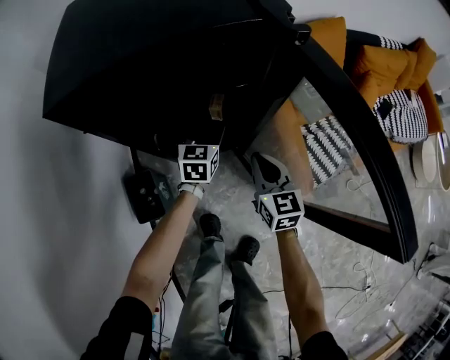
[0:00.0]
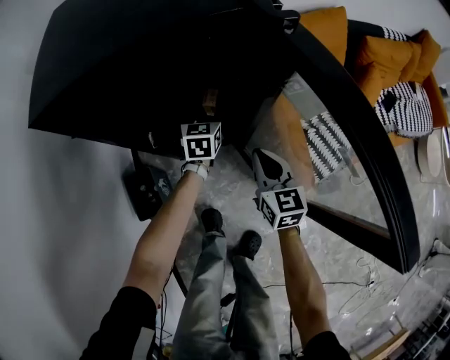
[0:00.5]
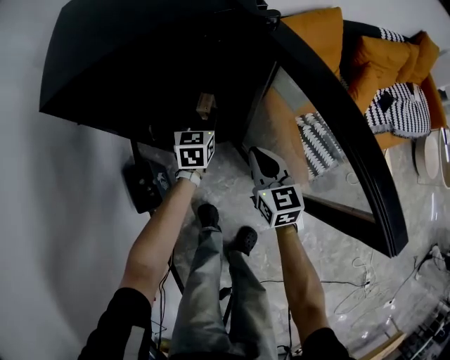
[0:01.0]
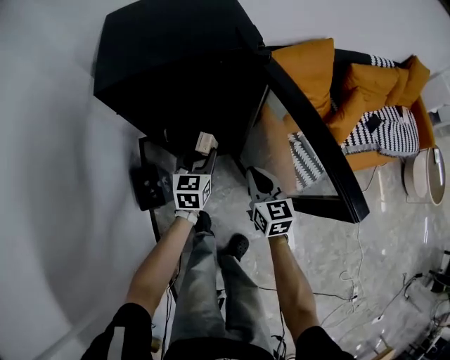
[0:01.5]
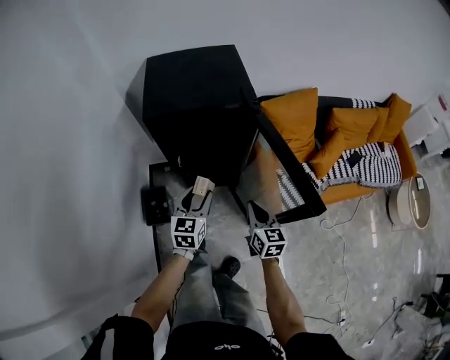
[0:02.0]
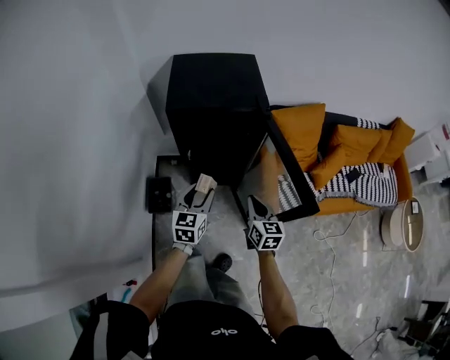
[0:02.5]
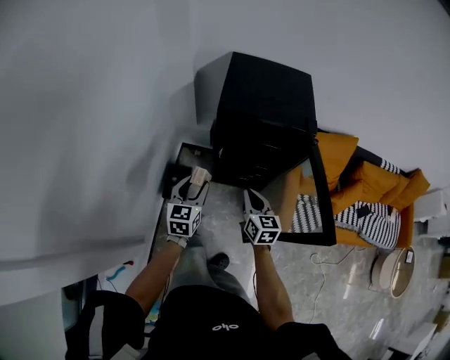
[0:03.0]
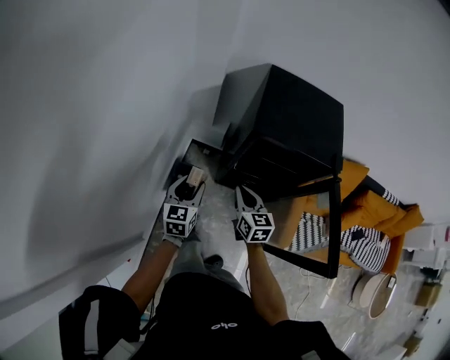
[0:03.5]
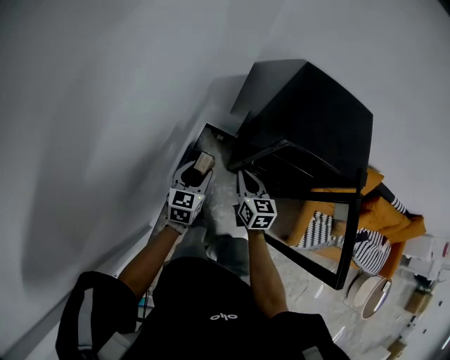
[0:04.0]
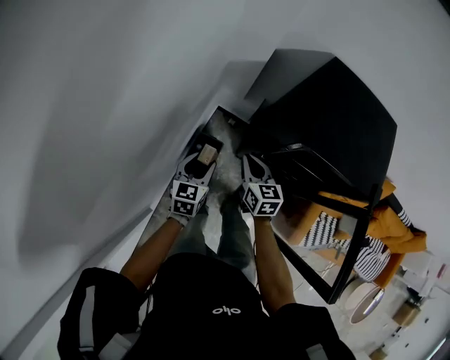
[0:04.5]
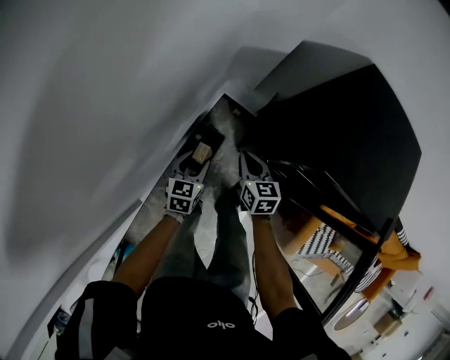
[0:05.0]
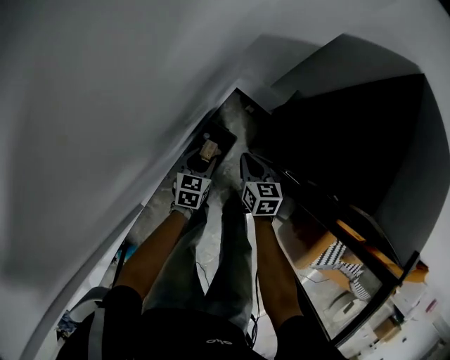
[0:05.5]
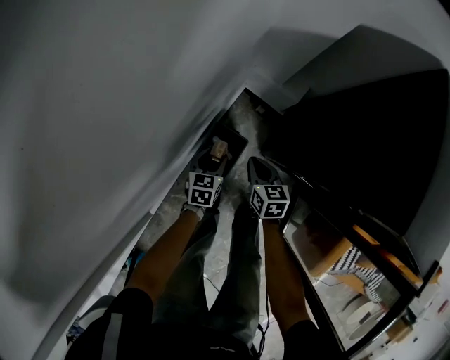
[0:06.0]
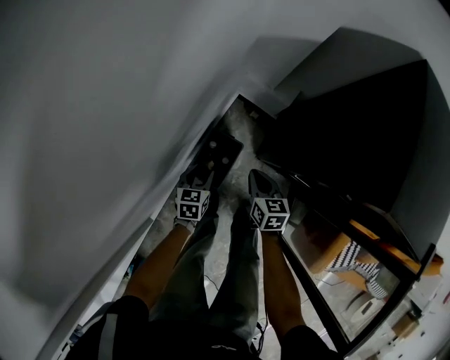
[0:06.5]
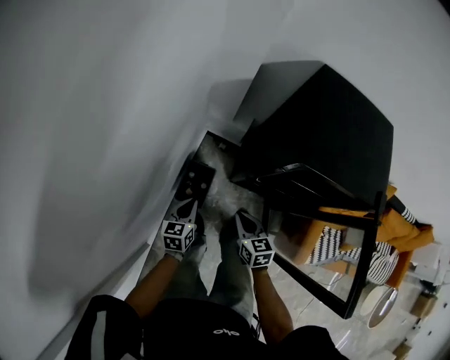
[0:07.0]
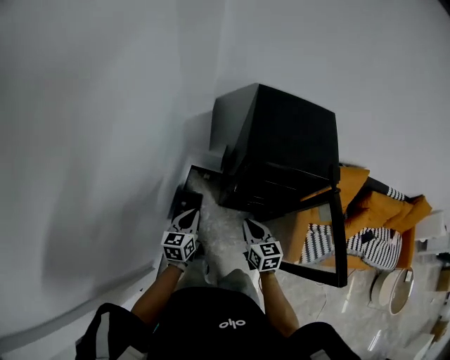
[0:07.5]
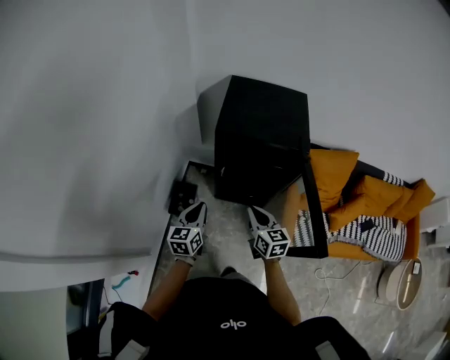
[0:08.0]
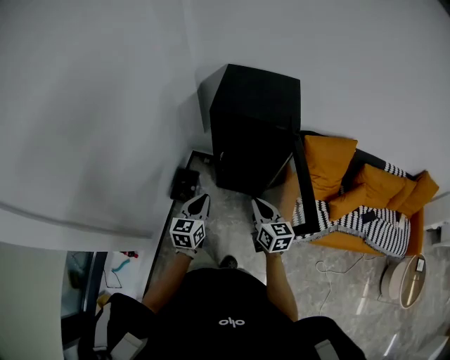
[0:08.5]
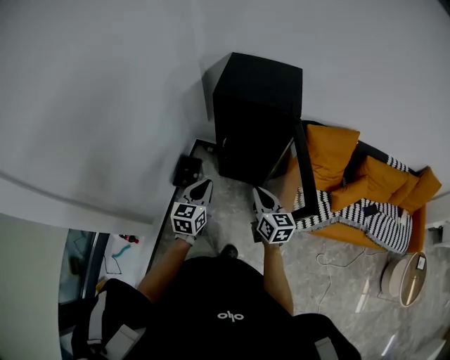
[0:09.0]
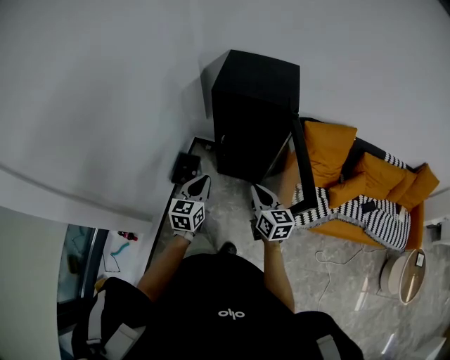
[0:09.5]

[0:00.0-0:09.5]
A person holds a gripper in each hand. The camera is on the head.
0:00.0 to 0:02.0: The left gripper heads backward and upward, covering about 35 cm; the right gripper travels upward and backward by some 25 cm.
0:02.0 to 0:04.0: The left gripper moves about 35 cm, and rotates some 20 degrees; the right gripper changes place by about 40 cm, and swivels some 30 degrees.
0:04.0 to 0:05.5: Both grippers travel together downward, approximately 30 cm. The right gripper swivels about 20 degrees; the left gripper rotates roughly 20 degrees.
0:05.5 to 0:07.5: The right gripper is displaced upward, backward and to the right by about 40 cm, and swivels approximately 20 degrees, while the left gripper heads upward and backward, covering some 35 cm, rotates roughly 20 degrees, and closes.
0:07.5 to 0:09.5: Both grippers move backward, to the right and upward, approximately 30 cm.

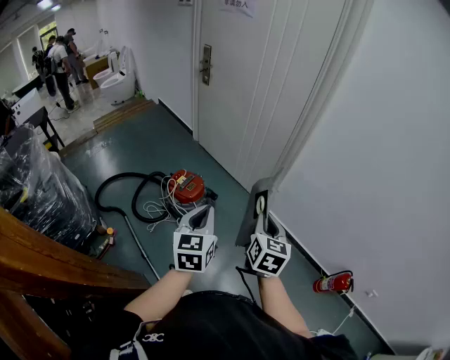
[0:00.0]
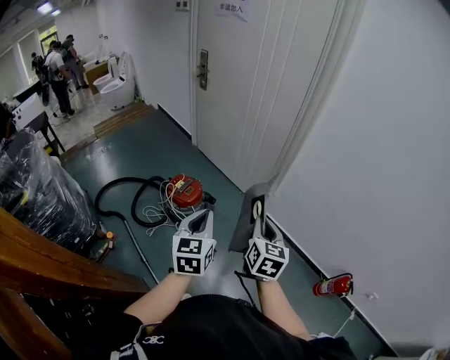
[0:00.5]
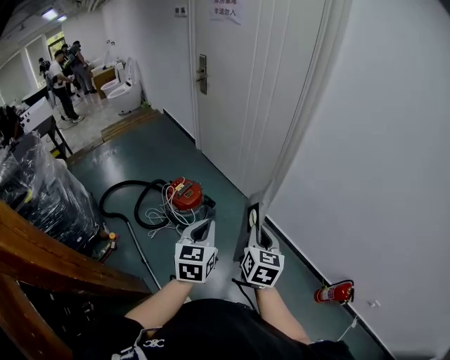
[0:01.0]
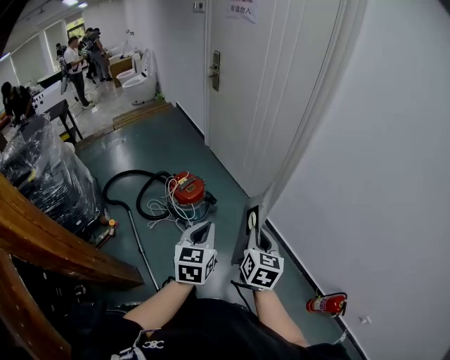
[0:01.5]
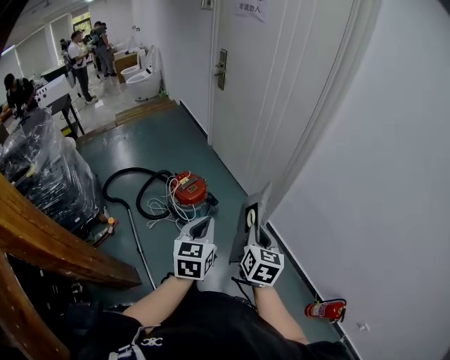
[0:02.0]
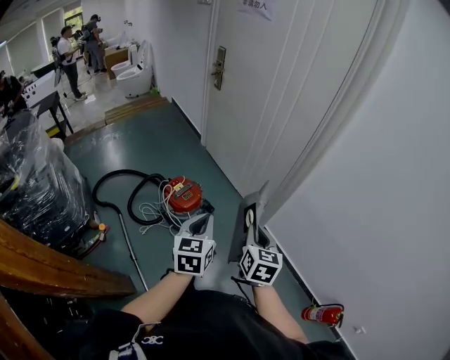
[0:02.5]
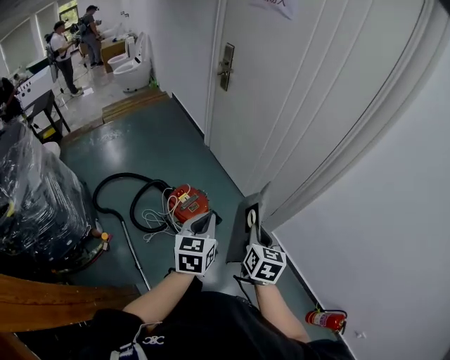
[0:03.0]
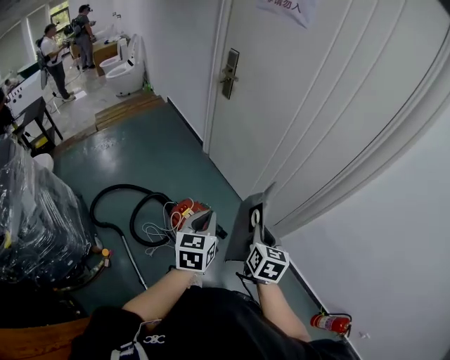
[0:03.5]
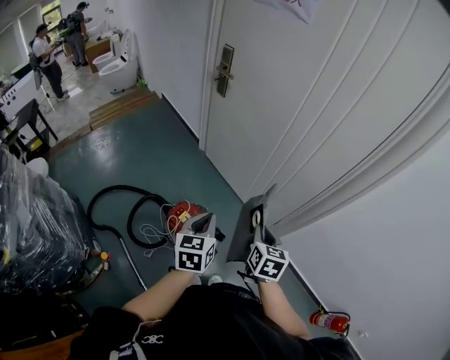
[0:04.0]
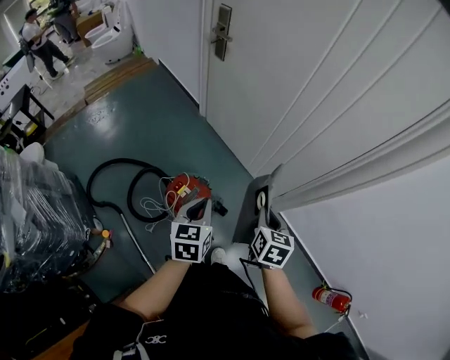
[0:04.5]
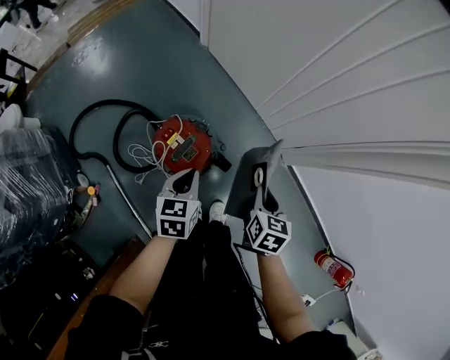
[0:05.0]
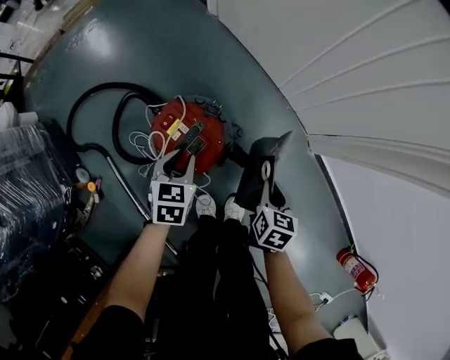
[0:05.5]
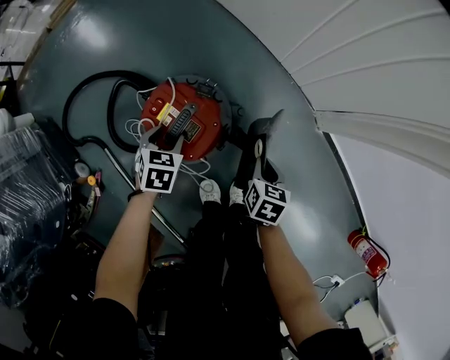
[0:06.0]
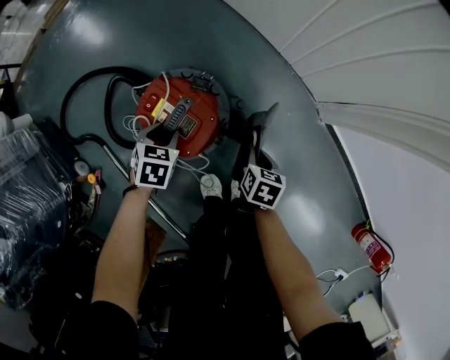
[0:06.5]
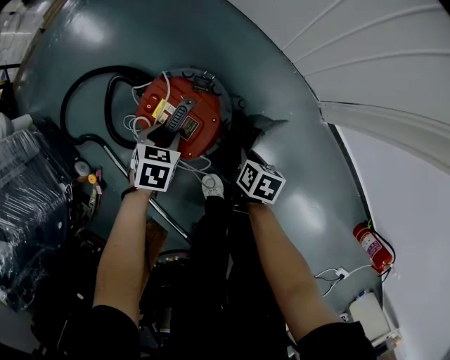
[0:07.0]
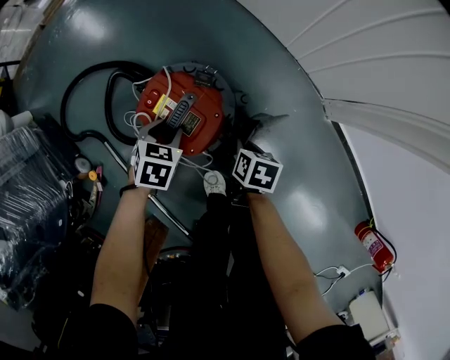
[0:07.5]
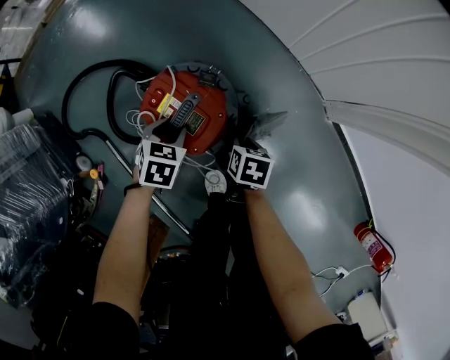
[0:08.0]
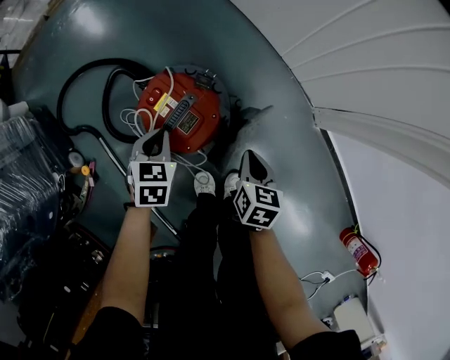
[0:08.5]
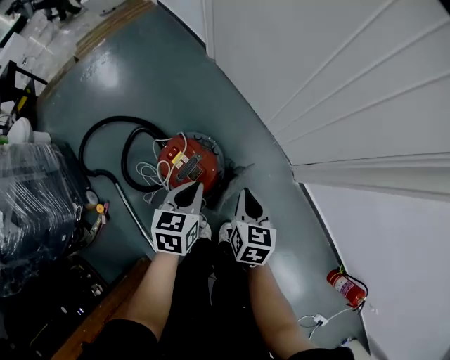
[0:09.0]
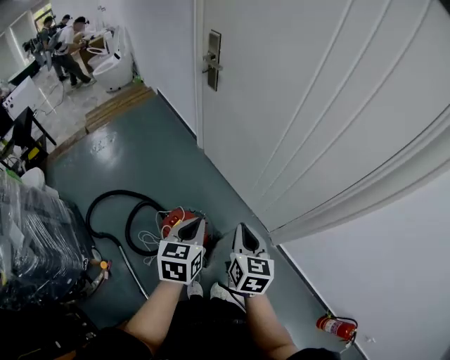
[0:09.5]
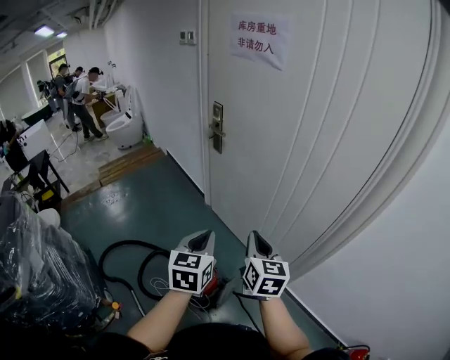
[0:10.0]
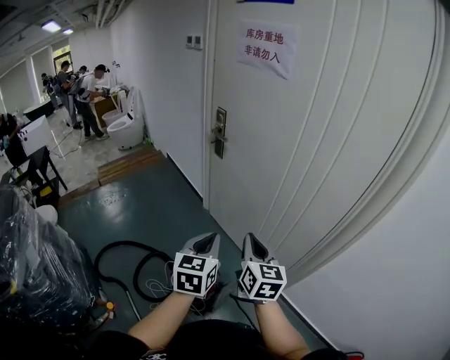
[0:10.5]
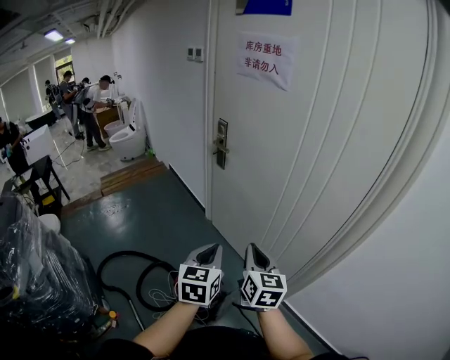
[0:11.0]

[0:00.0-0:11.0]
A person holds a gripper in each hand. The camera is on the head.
0:00.0 to 0:02.0: The left gripper heads to the right, covering about 10 cm. The right gripper travels to the right by about 5 cm.
0:02.0 to 0:03.5: The grippers both shift forward and to the left by some 30 cm.
0:03.5 to 0:05.5: Both grippers move downward, some 40 cm. The right gripper turns by approximately 20 degrees, while the left gripper changes its angle by some 30 degrees.
0:05.5 to 0:07.5: The left gripper goes roughly 10 cm downward, and swivels some 20 degrees, while the right gripper goes roughly 15 cm downward and to the left, and rotates about 20 degrees.
0:07.5 to 0:09.0: The two grippers go approximately 30 cm upward. The left gripper swivels roughly 30 degrees, and closes its fingers. The right gripper rotates some 30 degrees.
0:09.0 to 0:11.0: The two grippers go roughly 40 cm upward. The left gripper swivels about 30 degrees. The right gripper rotates roughly 30 degrees.

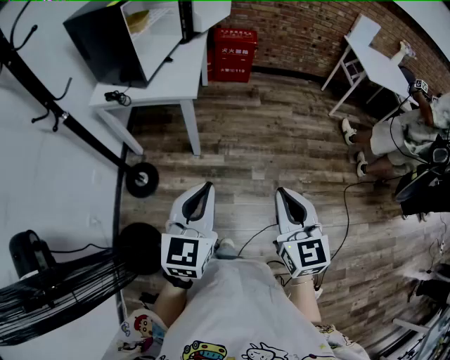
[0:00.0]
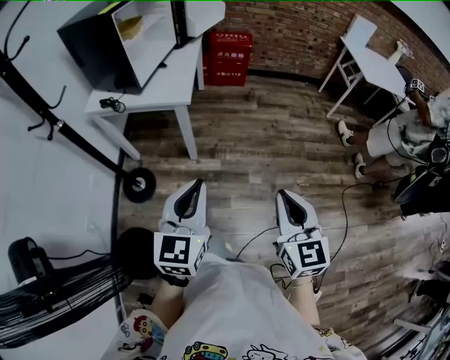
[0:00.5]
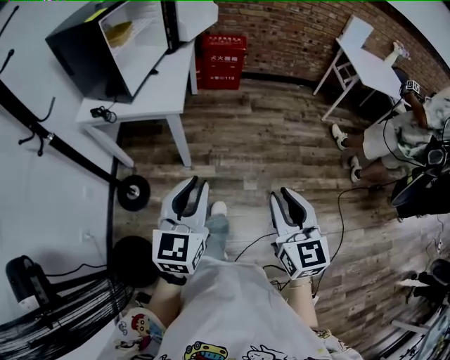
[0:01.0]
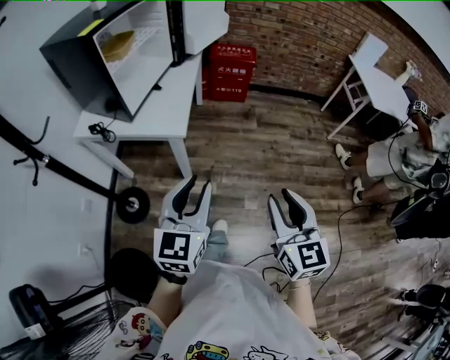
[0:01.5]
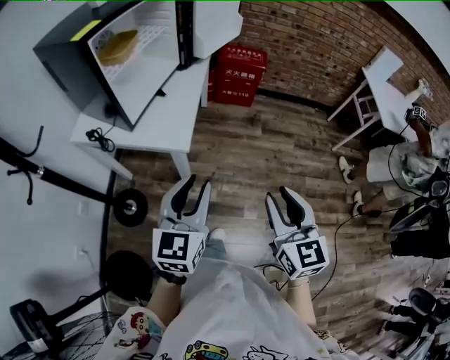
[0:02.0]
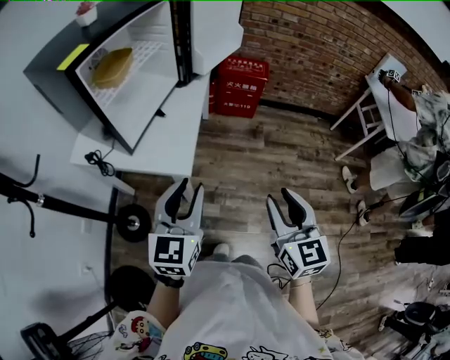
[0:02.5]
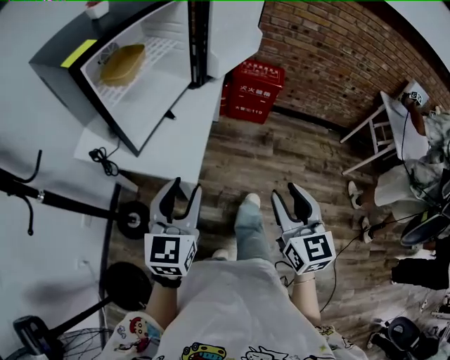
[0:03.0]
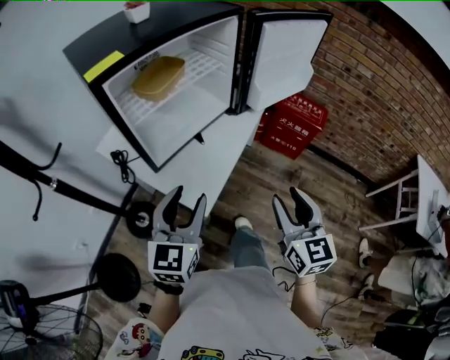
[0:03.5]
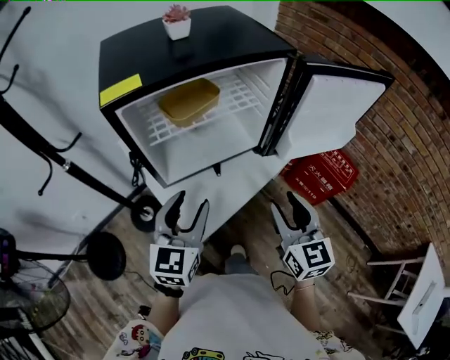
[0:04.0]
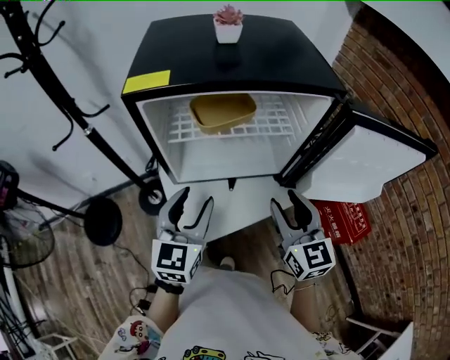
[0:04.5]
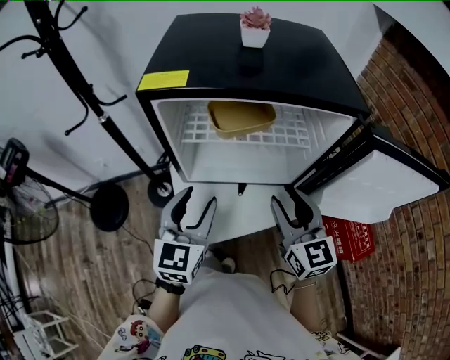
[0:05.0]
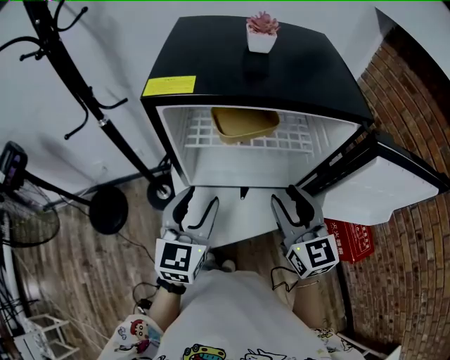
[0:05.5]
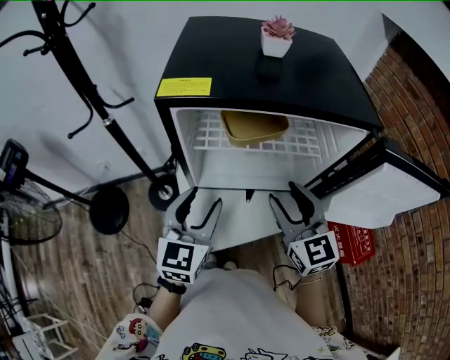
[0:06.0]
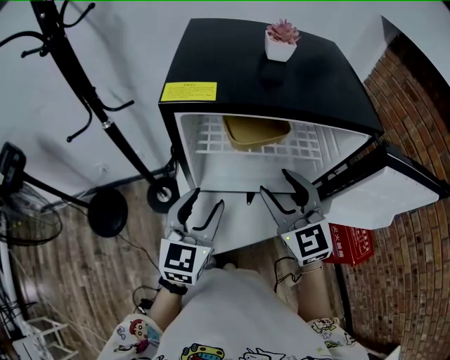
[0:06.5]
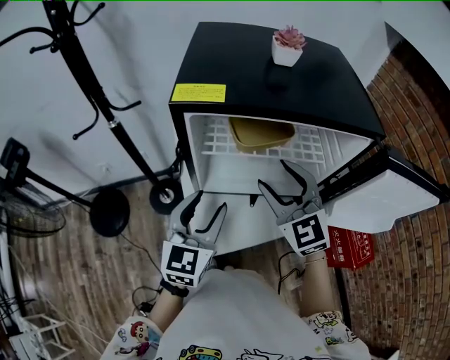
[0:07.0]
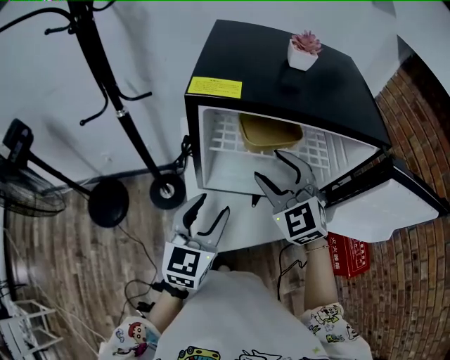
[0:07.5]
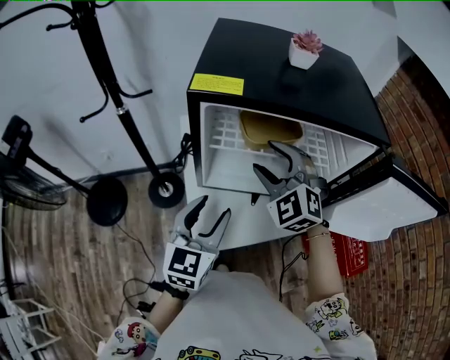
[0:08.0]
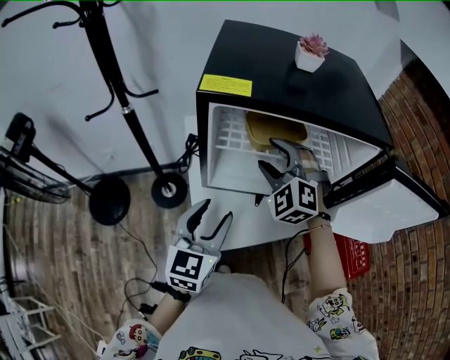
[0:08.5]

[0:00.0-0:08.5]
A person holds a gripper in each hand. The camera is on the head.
0:00.0 to 0:02.0: The two grippers go some 25 cm forward. The left gripper opens its fingers, while the right gripper opens up.
0:02.0 to 0:04.0: The right gripper changes place by about 40 cm, and turns by approximately 40 degrees; the left gripper changes place by roughly 30 cm, turns by roughly 40 degrees, and opens up.
0:04.0 to 0:06.5: The right gripper moves approximately 20 cm, and swivels approximately 40 degrees; the left gripper shifts by some 10 cm, and rotates some 20 degrees.
0:06.5 to 0:08.5: The right gripper shifts some 10 cm forward, and twists approximately 40 degrees counterclockwise, seen from behind.
